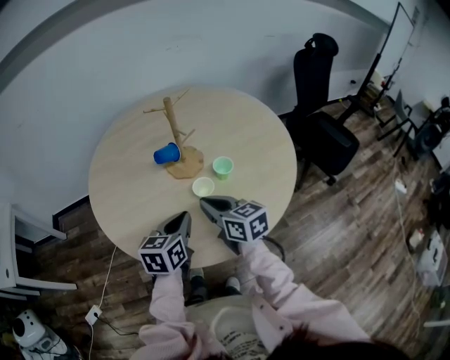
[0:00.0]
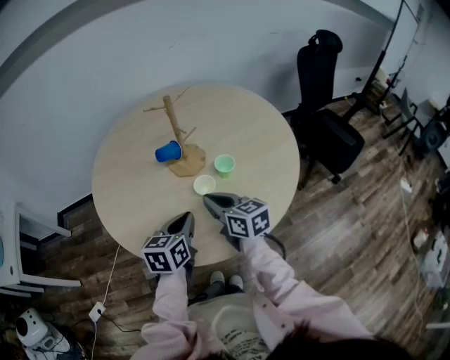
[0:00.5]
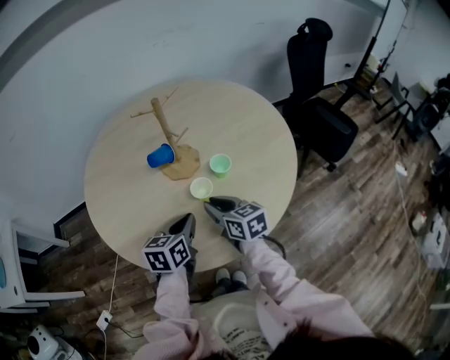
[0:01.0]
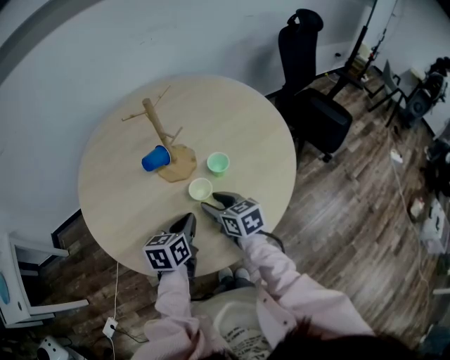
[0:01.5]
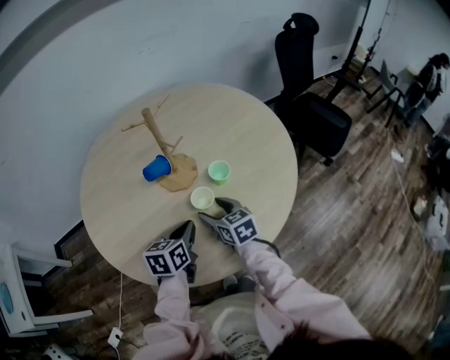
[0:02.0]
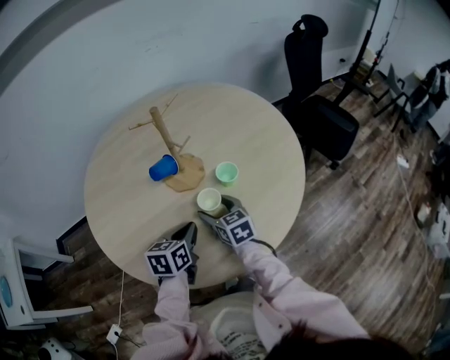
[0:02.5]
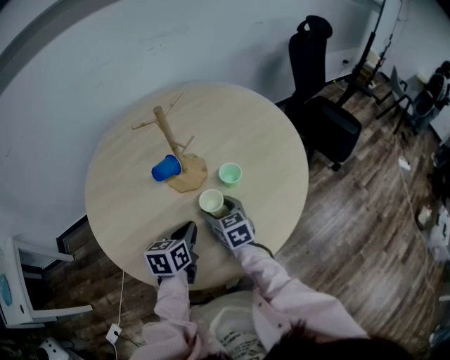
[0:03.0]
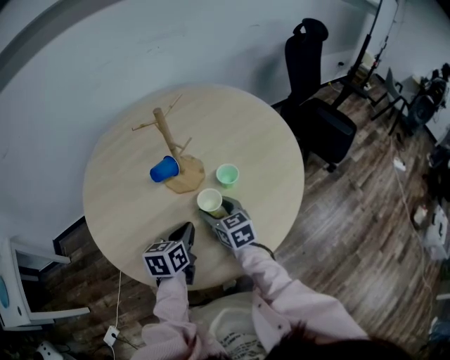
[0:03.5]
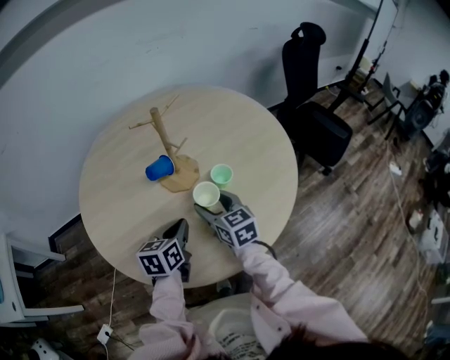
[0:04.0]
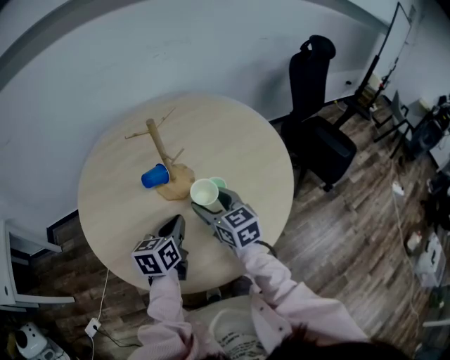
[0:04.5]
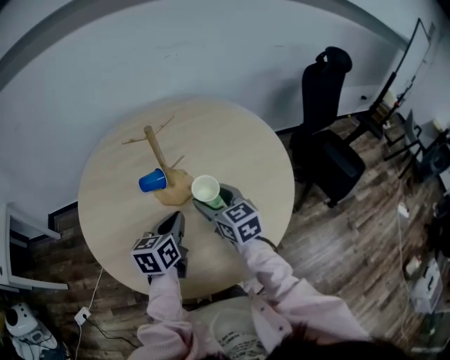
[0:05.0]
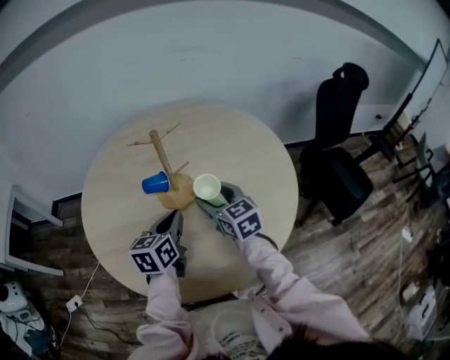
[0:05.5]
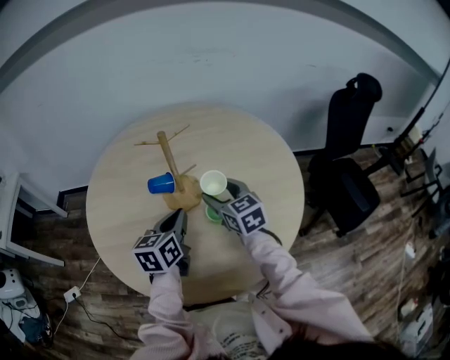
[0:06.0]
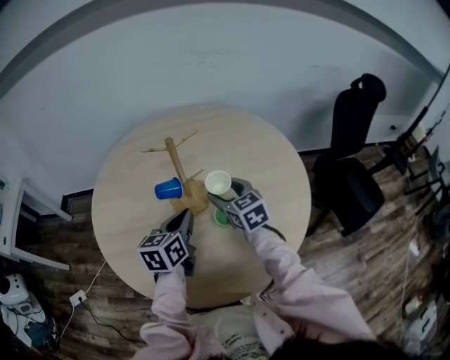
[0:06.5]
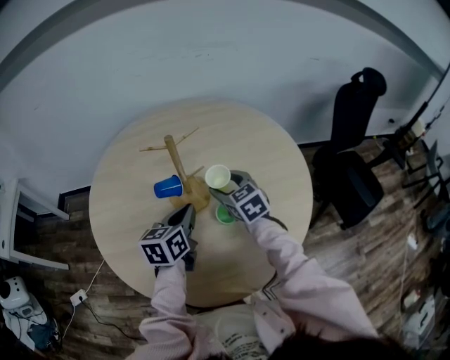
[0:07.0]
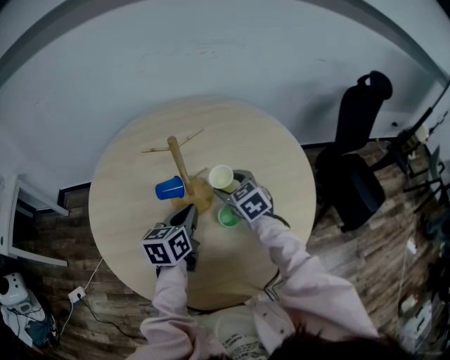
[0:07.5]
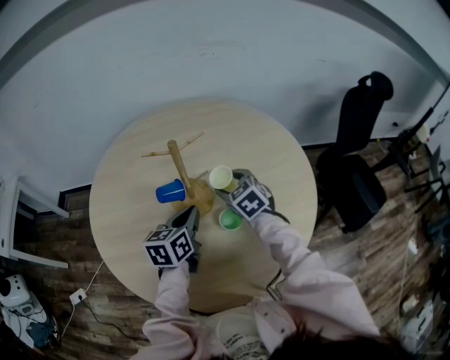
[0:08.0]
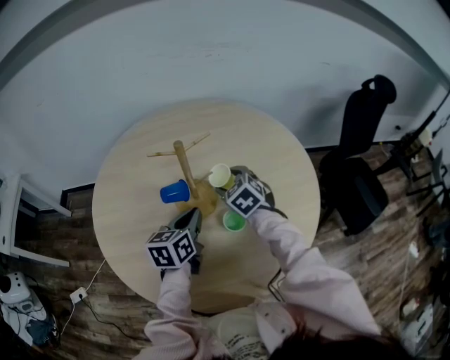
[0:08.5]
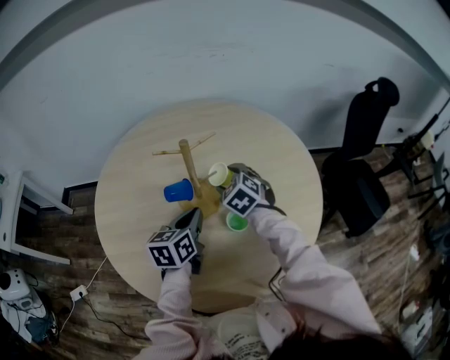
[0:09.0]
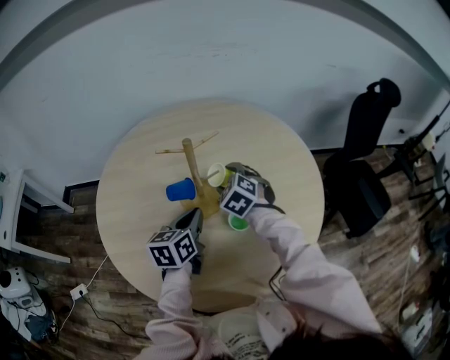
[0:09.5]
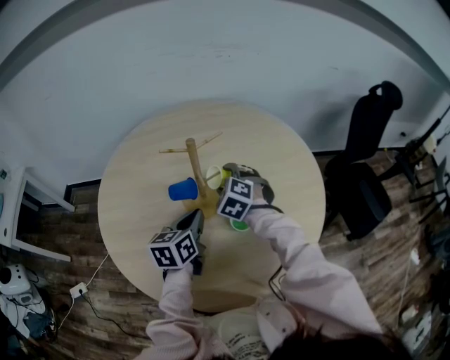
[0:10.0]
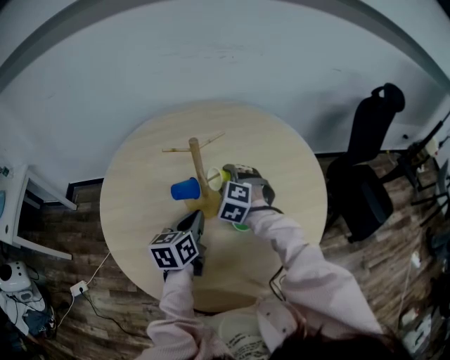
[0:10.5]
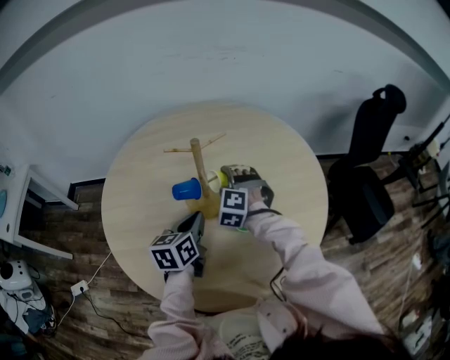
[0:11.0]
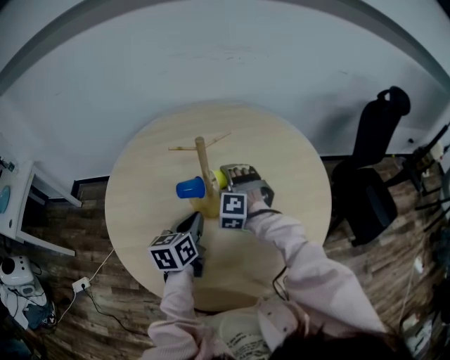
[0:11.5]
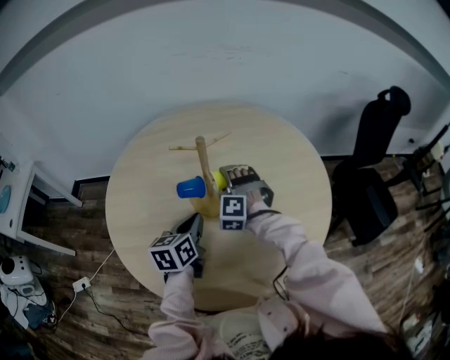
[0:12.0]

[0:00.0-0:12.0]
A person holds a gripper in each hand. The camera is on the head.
0:00.0 to 0:02.0: The right gripper moves downward and forward, some 15 cm, and opens up, while the left gripper goes roughly 5 cm downward.
0:02.0 to 0:04.0: The right gripper moves upward, roughly 5 cm.
0:04.0 to 0:06.0: The left gripper goes approximately 15 cm upward, forward and to the right, and swivels about 20 degrees, while the right gripper shifts approximately 15 cm forward, to the right and upward, and changes its angle by approximately 20 degrees.
0:06.0 to 0:08.0: Both grippers move forward, some 5 cm. The right gripper changes its angle by about 20 degrees.
0:08.0 to 0:10.0: The right gripper turns by some 30 degrees.
0:10.0 to 0:12.0: The right gripper swivels approximately 30 degrees.

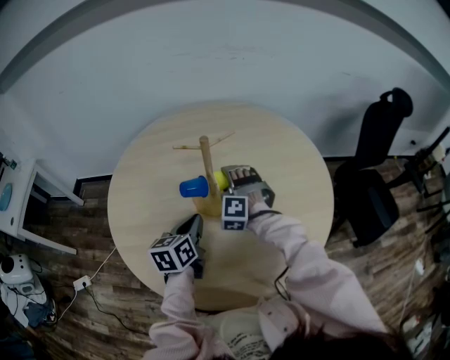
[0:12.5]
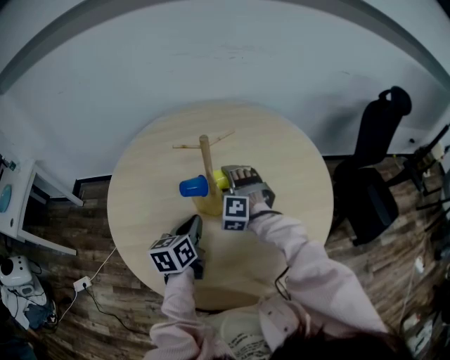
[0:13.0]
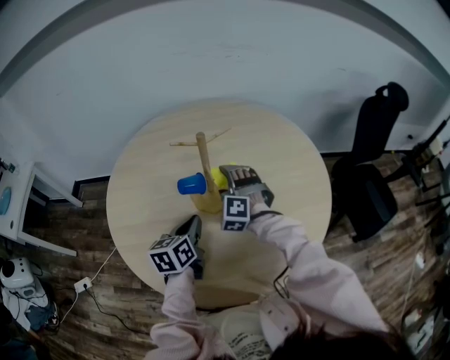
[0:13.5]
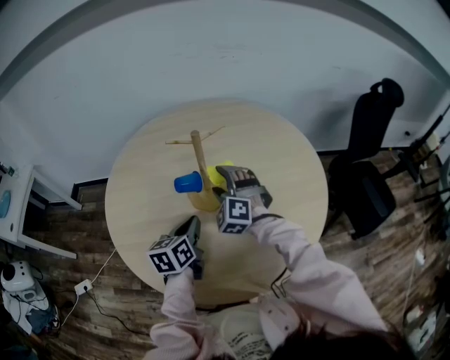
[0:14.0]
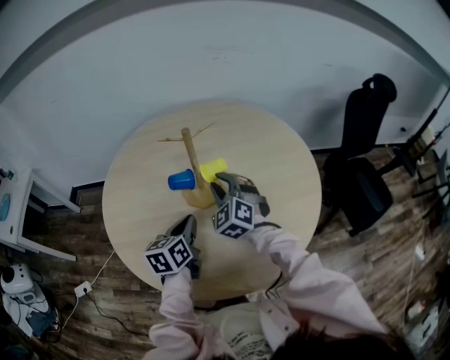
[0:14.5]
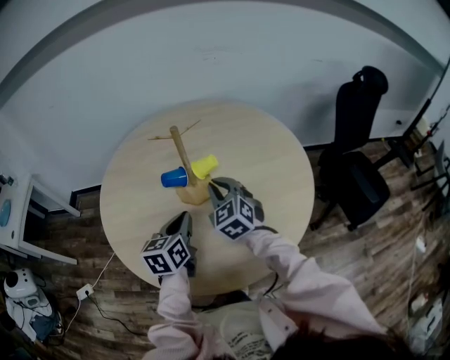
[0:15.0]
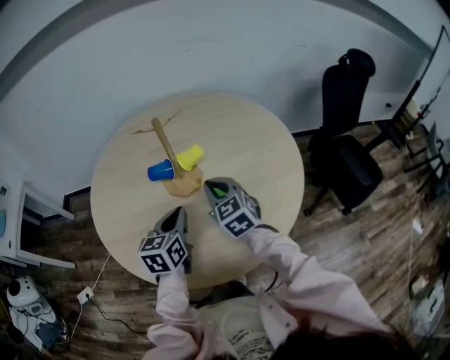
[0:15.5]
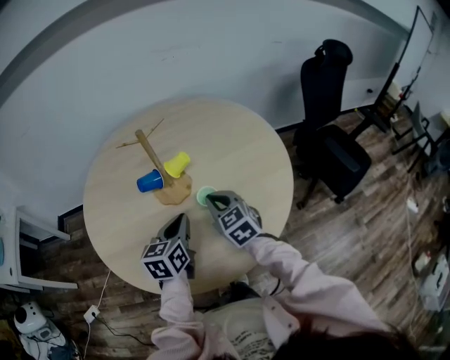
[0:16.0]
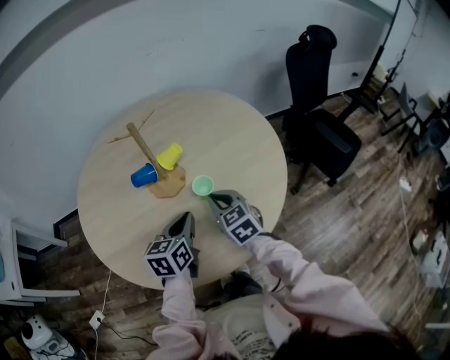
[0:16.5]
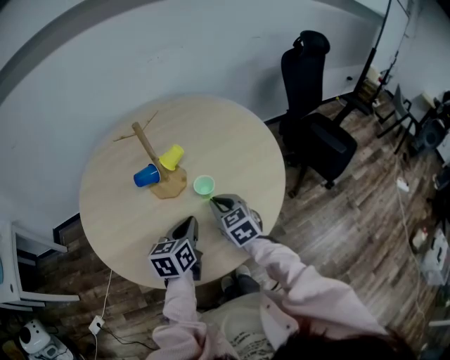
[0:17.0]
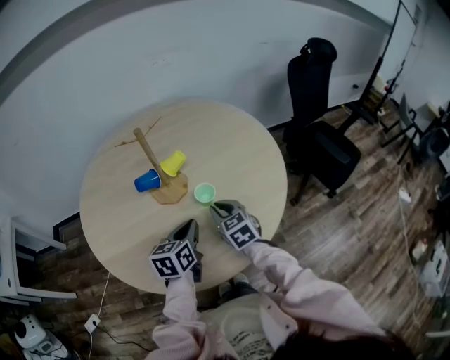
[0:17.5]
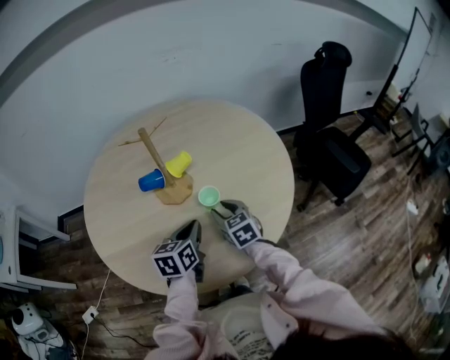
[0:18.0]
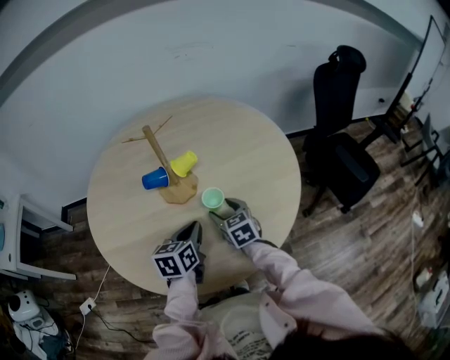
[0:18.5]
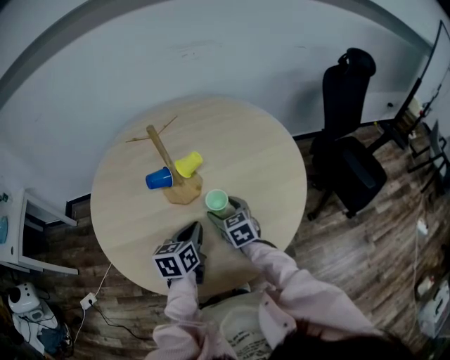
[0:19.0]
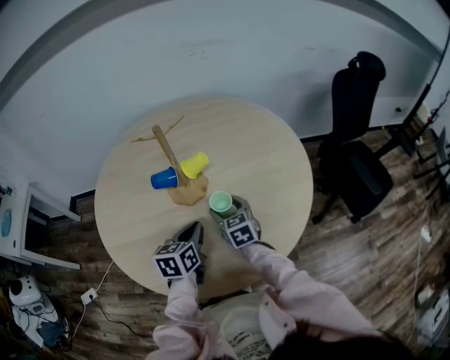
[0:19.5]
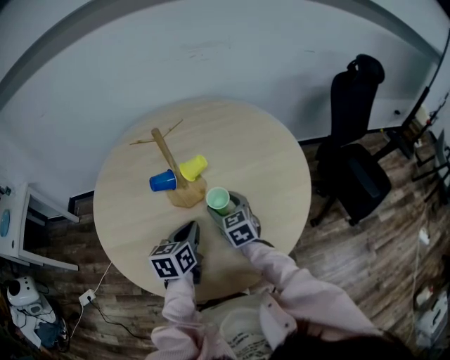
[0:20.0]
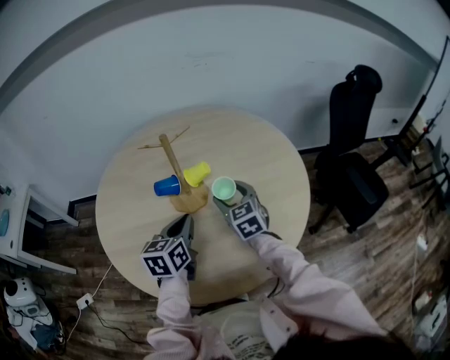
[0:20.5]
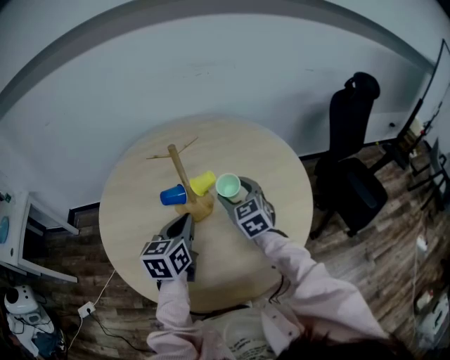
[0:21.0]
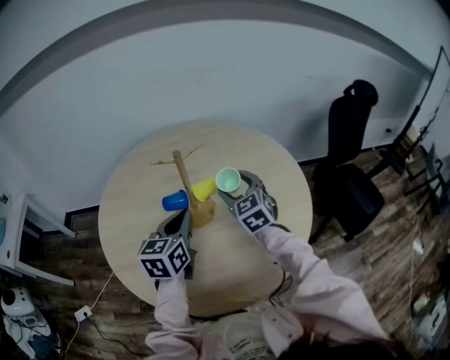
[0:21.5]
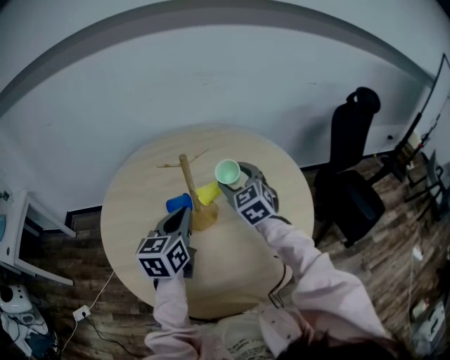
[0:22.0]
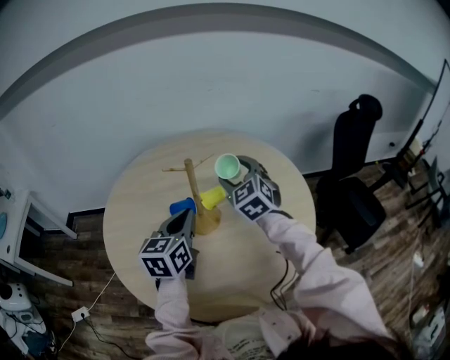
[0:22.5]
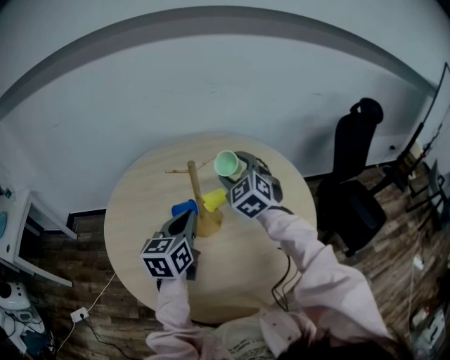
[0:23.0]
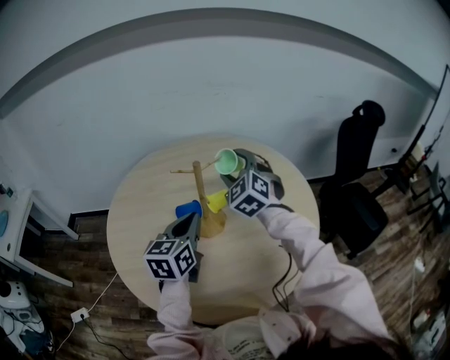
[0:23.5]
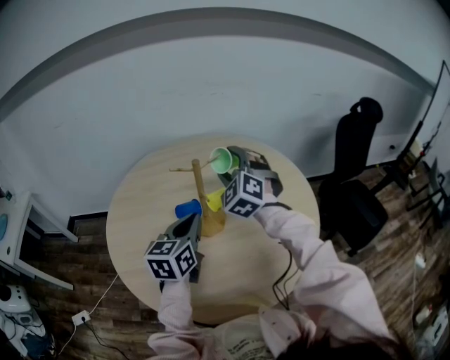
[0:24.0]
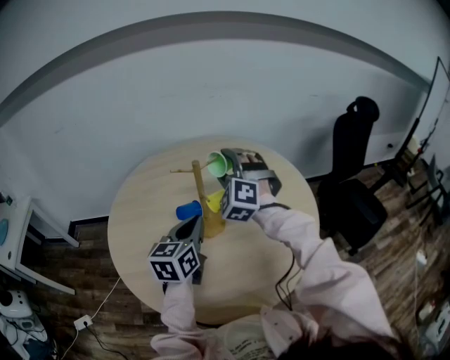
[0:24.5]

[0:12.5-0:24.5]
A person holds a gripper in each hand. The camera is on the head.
0:12.5 to 0:14.5: The right gripper travels backward and upward by approximately 10 cm, changes its angle by approximately 40 degrees, and closes up.
0:14.5 to 0:16.5: The right gripper heads backward, to the right and downward, covering some 15 cm, and twists roughly 40 degrees clockwise, seen from behind; the left gripper moves to the right, some 10 cm, and swivels roughly 20 degrees.
0:16.5 to 0:18.5: The right gripper heads downward, covering some 5 cm, and opens.
0:18.5 to 0:20.5: The left gripper is displaced upward by some 5 cm, while the right gripper heads upward and forward, covering some 10 cm.
0:20.5 to 0:22.5: The right gripper goes roughly 15 cm upward and forward, and swivels roughly 20 degrees. Meanwhile the left gripper shifts roughly 10 cm upward.
0:22.5 to 0:24.5: The right gripper changes place by some 5 cm, and changes its angle by approximately 40 degrees.

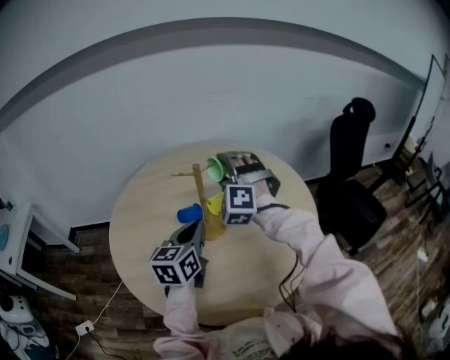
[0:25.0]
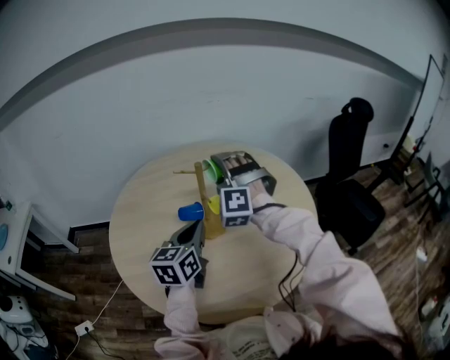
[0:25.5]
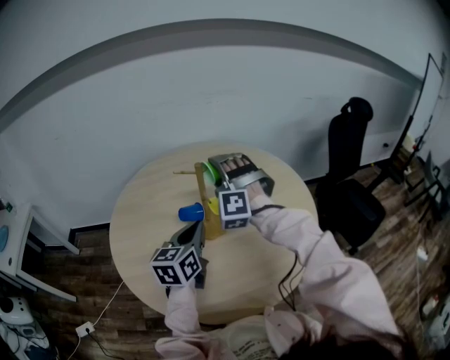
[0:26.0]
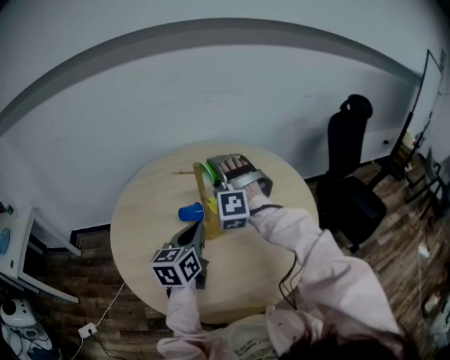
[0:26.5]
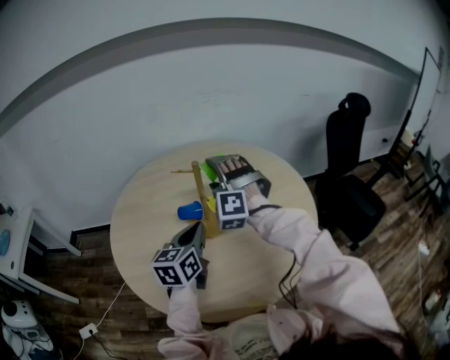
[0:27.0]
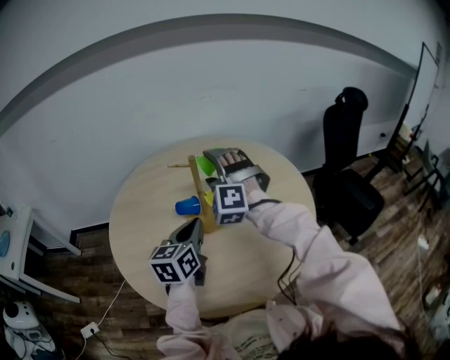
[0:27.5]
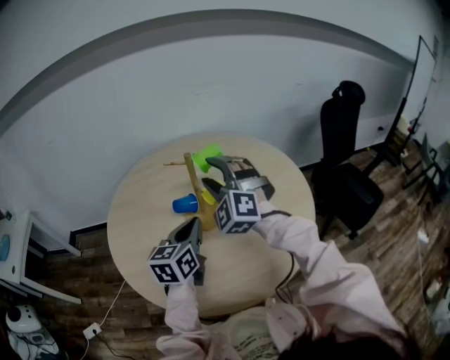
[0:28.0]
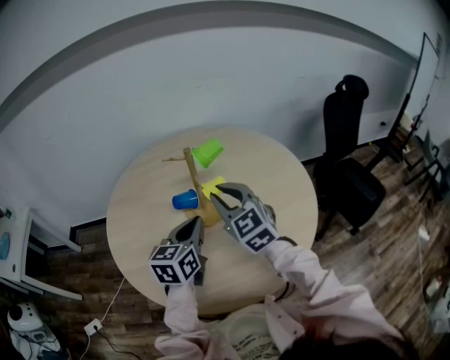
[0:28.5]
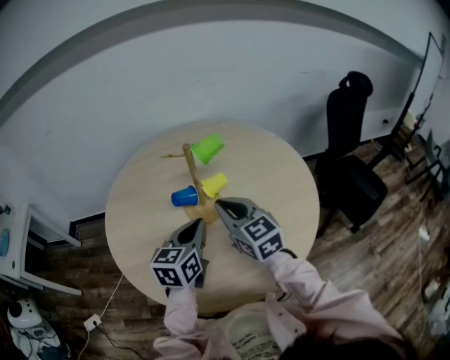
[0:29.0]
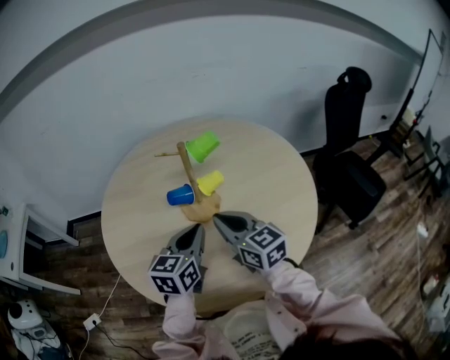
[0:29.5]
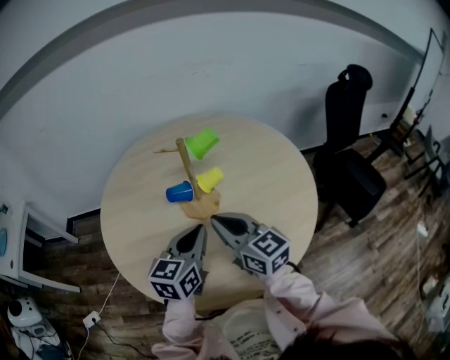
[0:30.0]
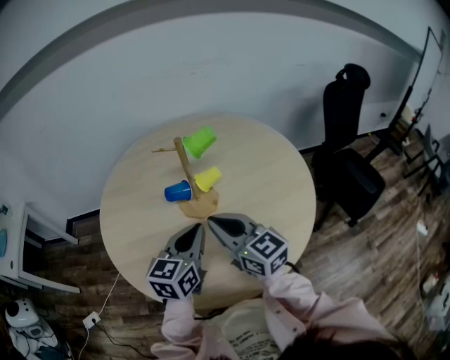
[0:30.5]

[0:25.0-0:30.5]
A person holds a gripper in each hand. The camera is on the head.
0:25.0 to 0:27.0: The grippers stay close to where they were, moving slightly.
0:27.0 to 0:28.5: The right gripper travels backward by about 10 cm, twists approximately 60 degrees clockwise, seen from behind, and closes up.
0:28.5 to 0:30.5: The right gripper travels backward by roughly 10 cm, and swivels roughly 30 degrees.
